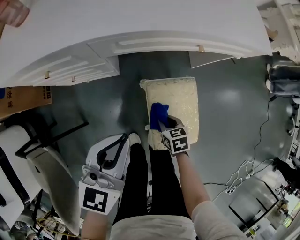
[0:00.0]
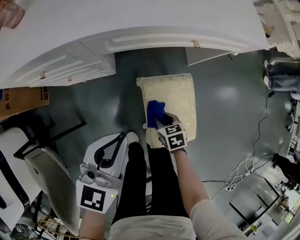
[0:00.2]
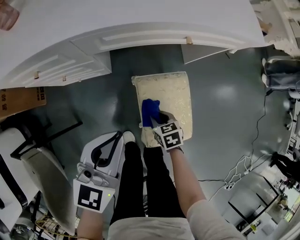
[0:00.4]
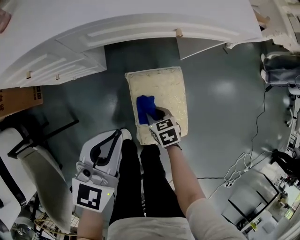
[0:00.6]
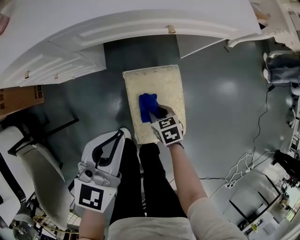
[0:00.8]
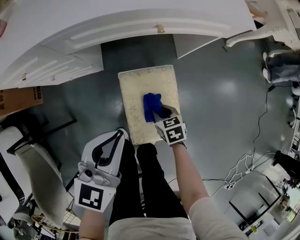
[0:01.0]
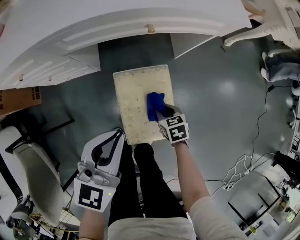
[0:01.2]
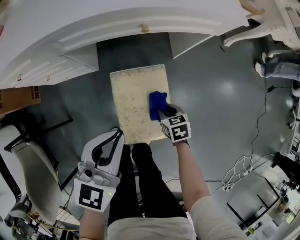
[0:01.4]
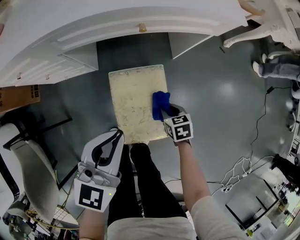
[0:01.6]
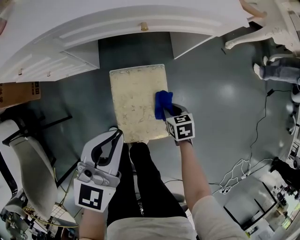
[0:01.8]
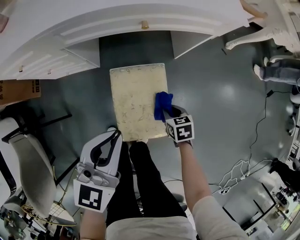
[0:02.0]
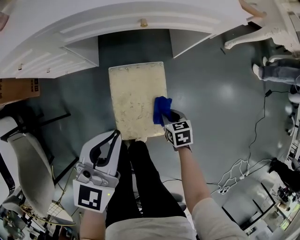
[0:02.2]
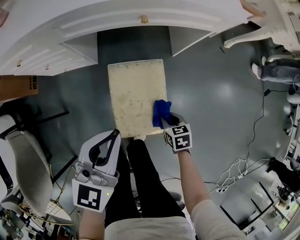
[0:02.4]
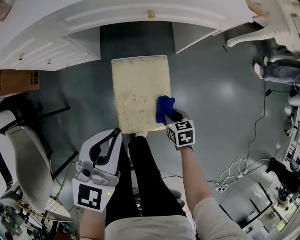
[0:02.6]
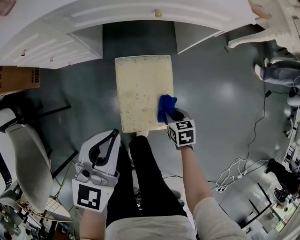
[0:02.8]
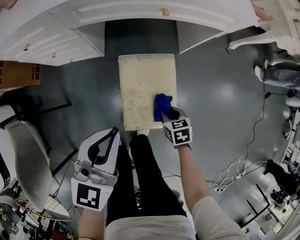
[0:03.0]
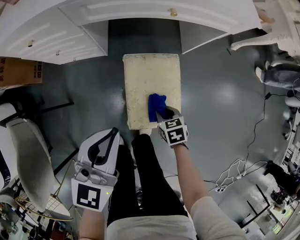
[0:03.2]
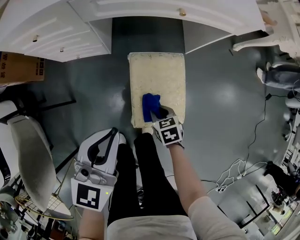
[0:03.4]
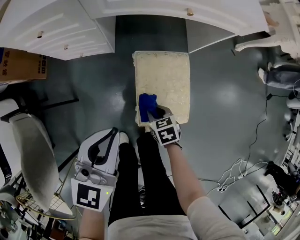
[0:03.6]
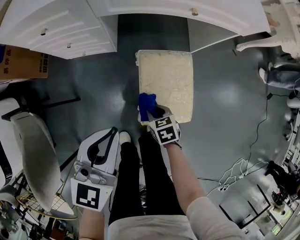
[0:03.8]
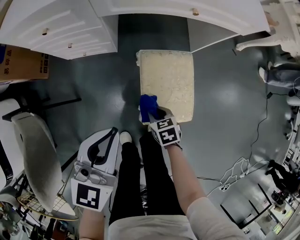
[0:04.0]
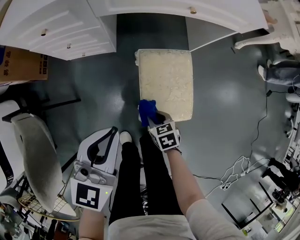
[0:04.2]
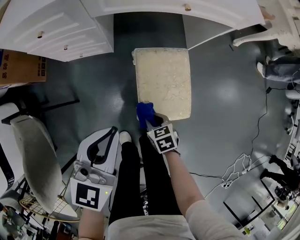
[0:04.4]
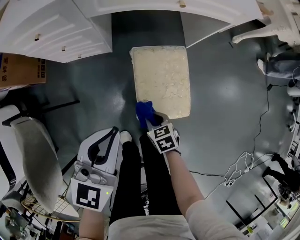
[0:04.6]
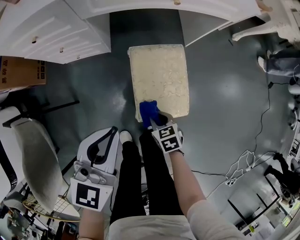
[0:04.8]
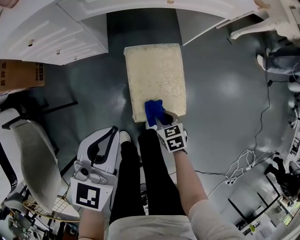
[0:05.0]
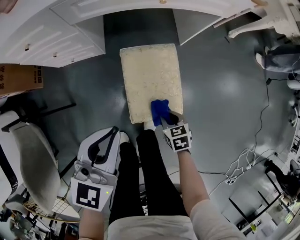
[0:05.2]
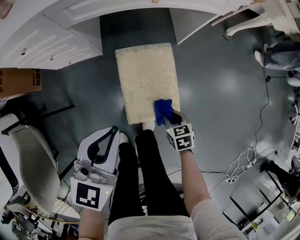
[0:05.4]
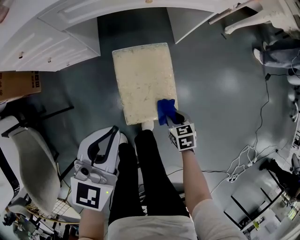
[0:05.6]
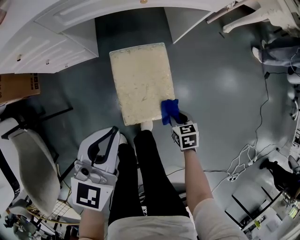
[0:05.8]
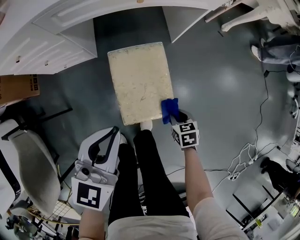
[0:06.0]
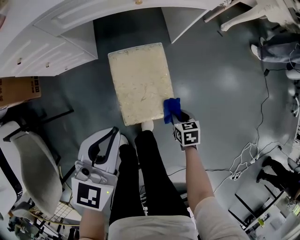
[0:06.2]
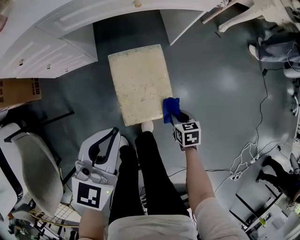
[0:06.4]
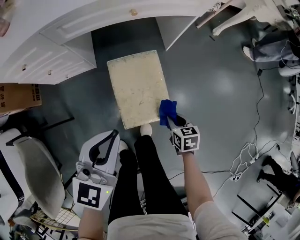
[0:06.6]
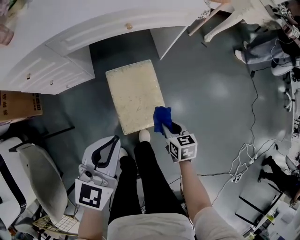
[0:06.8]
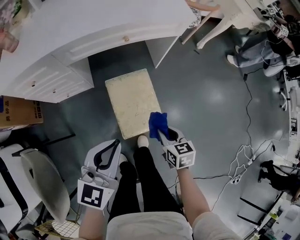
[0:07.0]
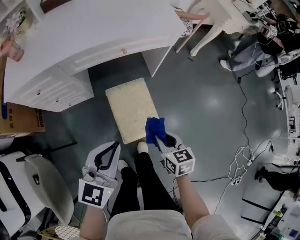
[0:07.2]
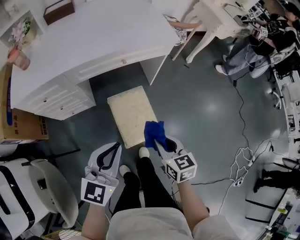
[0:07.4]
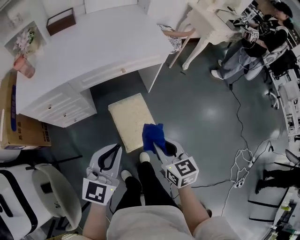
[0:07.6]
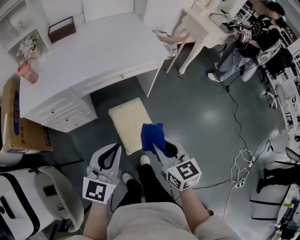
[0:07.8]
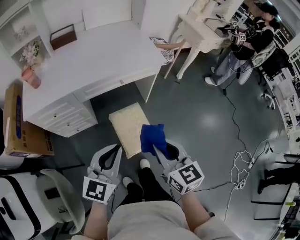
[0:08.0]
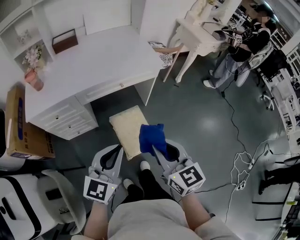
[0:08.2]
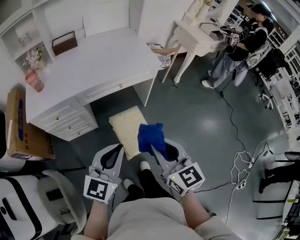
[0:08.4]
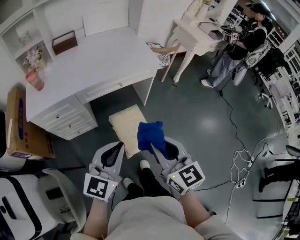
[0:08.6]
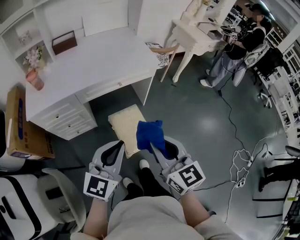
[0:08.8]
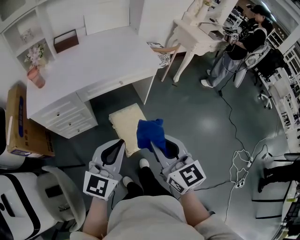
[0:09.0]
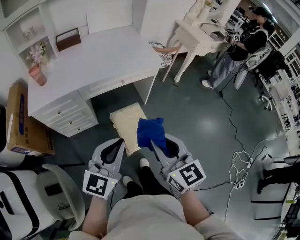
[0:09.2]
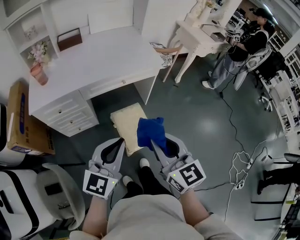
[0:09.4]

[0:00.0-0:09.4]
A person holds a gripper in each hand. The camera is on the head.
0:00.0 to 0:01.6: The grippers both shift to the right by approximately 15 cm.
0:01.6 to 0:03.2: Both grippers move to the left and backward, about 10 cm.
0:03.2 to 0:04.8: The right gripper moves to the left and backward, approximately 10 cm.
0:04.8 to 0:06.2: The right gripper goes some 20 cm to the right; the left gripper moves to the right, approximately 10 cm.
0:06.2 to 0:07.8: The right gripper goes roughly 50 cm upward, and points its fingers about 40 degrees further upward. Meanwhile the left gripper heads upward, covering approximately 20 cm.
0:07.8 to 0:09.4: The right gripper goes some 15 cm upward and backward, while the left gripper heads upward and backward, covering some 10 cm.

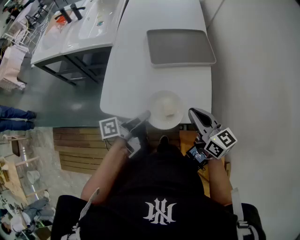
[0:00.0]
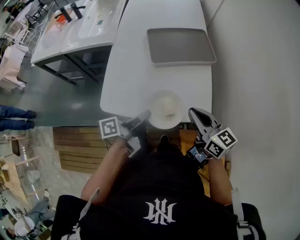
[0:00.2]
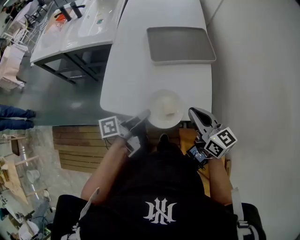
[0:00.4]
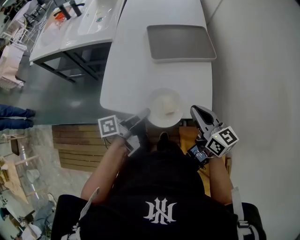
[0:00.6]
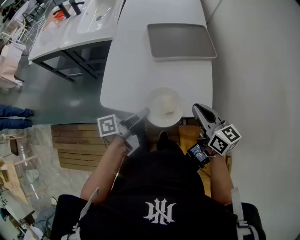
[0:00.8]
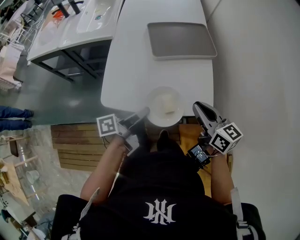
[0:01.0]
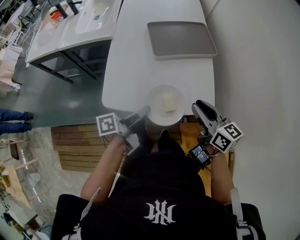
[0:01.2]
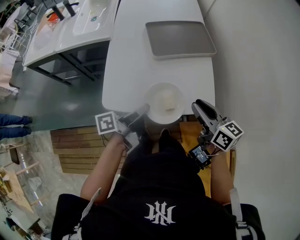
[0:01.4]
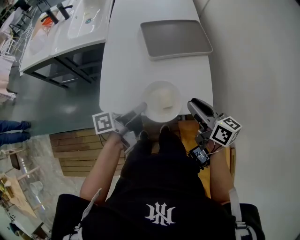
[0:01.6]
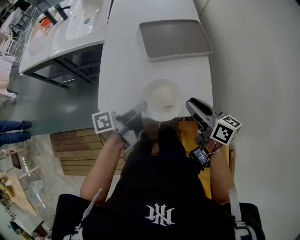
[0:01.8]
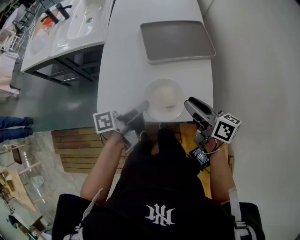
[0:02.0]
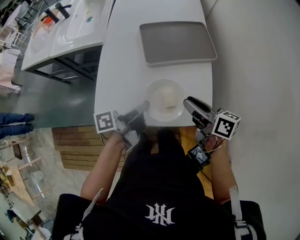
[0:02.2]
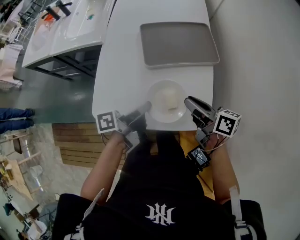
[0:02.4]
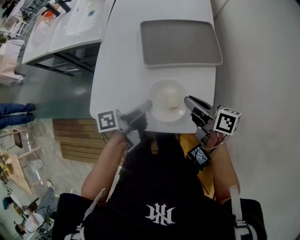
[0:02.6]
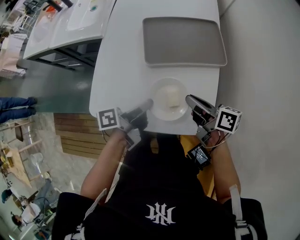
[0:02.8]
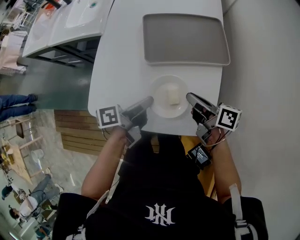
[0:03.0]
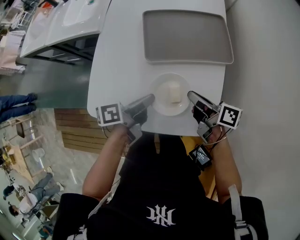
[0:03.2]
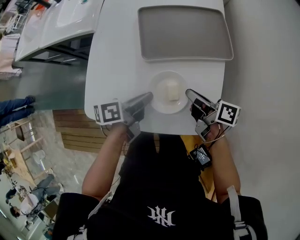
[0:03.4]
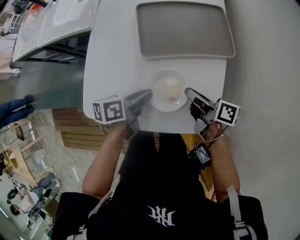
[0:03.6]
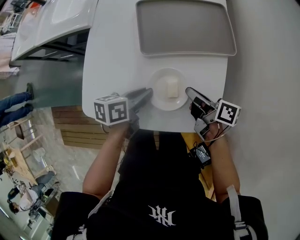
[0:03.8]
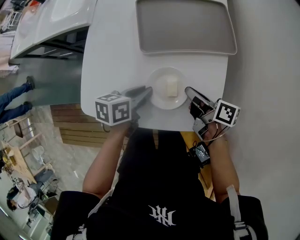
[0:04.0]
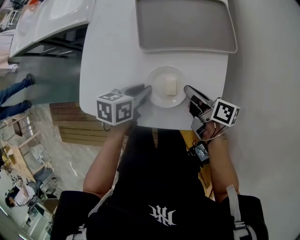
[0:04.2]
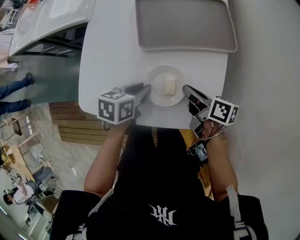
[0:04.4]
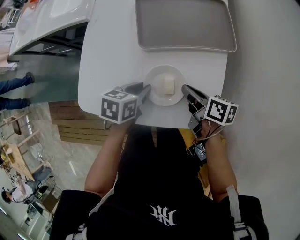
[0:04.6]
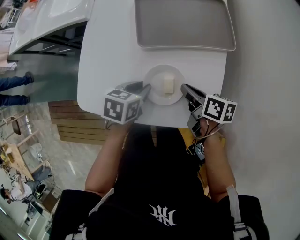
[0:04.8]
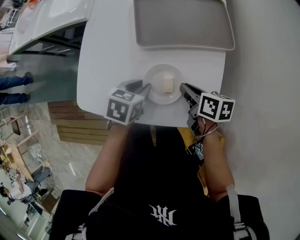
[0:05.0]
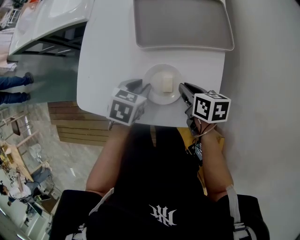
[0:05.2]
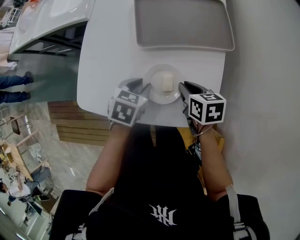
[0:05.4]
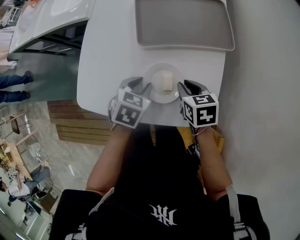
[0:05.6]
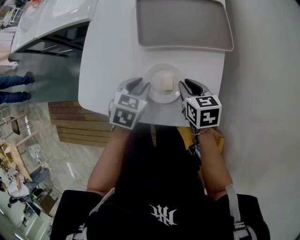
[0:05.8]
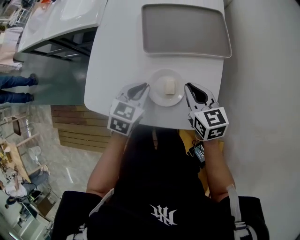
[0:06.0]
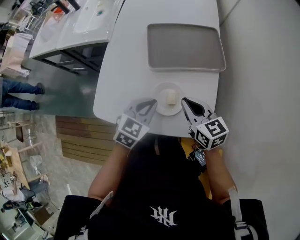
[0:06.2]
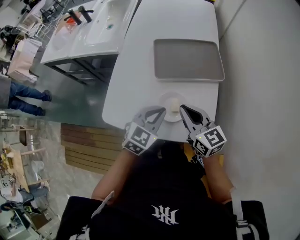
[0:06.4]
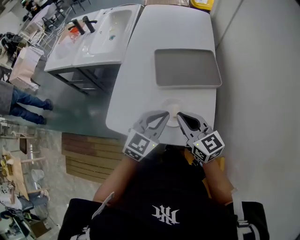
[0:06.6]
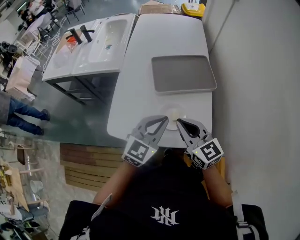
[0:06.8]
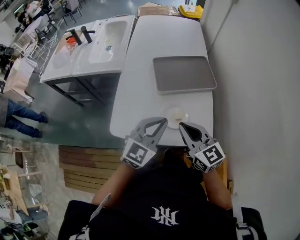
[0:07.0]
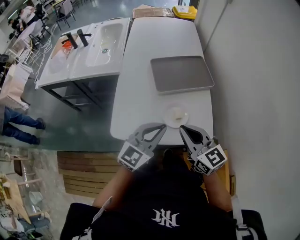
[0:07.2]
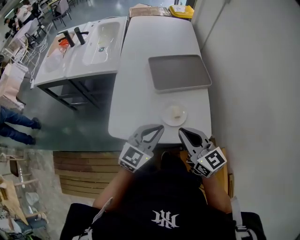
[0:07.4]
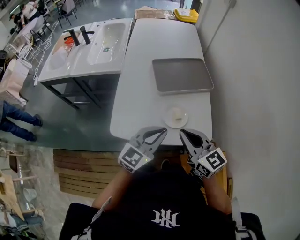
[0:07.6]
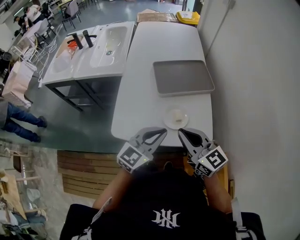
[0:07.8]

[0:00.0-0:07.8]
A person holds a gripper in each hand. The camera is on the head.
0:00.0 to 0:01.6: The right gripper opens.
0:01.6 to 0:03.2: The right gripper shifts roughly 20 cm forward and downward, and swivels roughly 30 degrees; the left gripper goes about 15 cm forward, downward and to the right.
0:03.2 to 0:04.6: The two grippers go about 5 cm downward. The left gripper points its fingers about 30 degrees further downward.
0:04.6 to 0:06.2: The grippers both shift upward by about 10 cm. The left gripper changes its angle by approximately 40 degrees. The right gripper rotates around the line of its fingers by approximately 50 degrees, counterclockwise from behind.
0:06.2 to 0:07.8: The left gripper shifts roughly 20 cm upward and backward, and rotates approximately 30 degrees, while the right gripper is displaced backward, upward and to the left by some 20 cm.

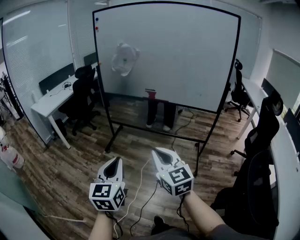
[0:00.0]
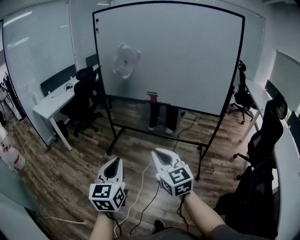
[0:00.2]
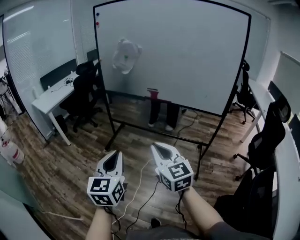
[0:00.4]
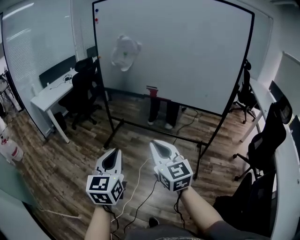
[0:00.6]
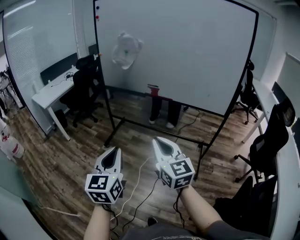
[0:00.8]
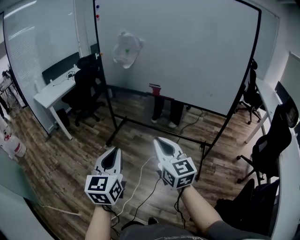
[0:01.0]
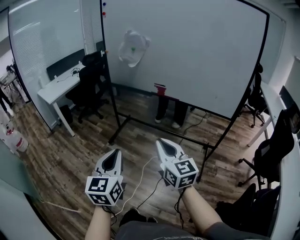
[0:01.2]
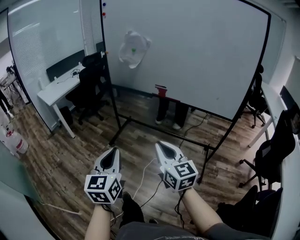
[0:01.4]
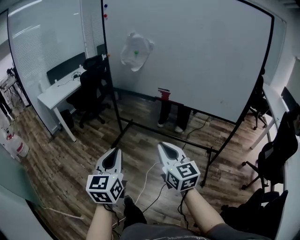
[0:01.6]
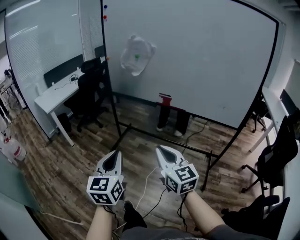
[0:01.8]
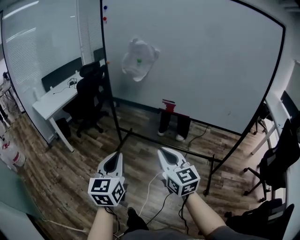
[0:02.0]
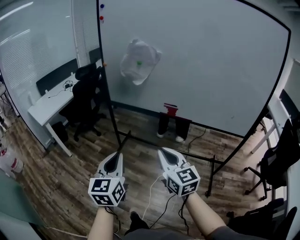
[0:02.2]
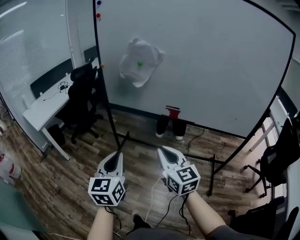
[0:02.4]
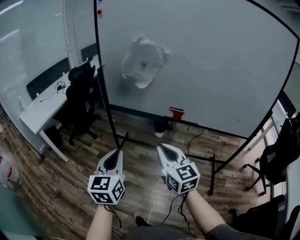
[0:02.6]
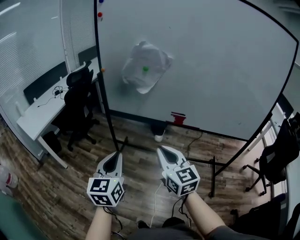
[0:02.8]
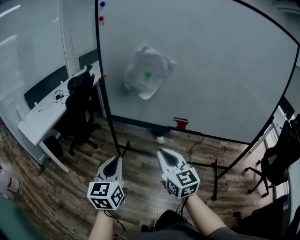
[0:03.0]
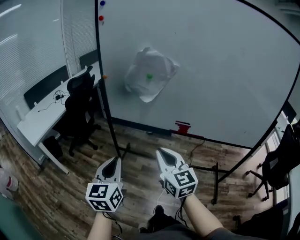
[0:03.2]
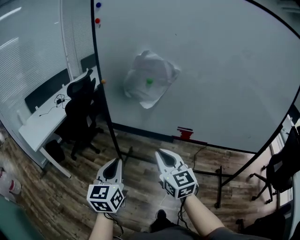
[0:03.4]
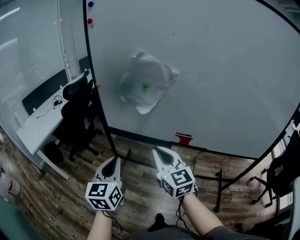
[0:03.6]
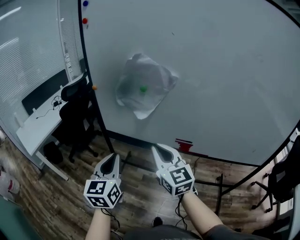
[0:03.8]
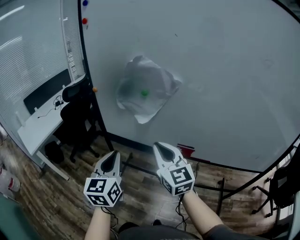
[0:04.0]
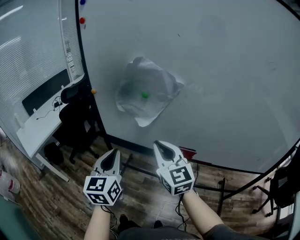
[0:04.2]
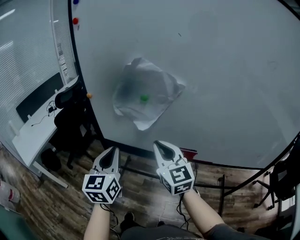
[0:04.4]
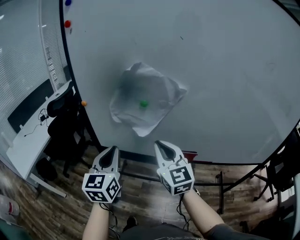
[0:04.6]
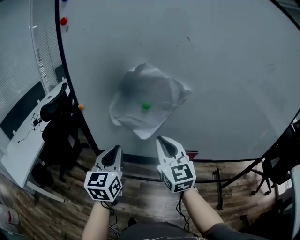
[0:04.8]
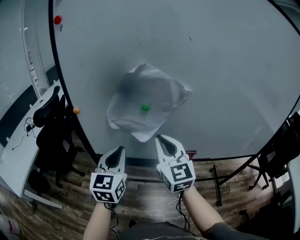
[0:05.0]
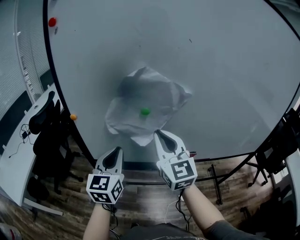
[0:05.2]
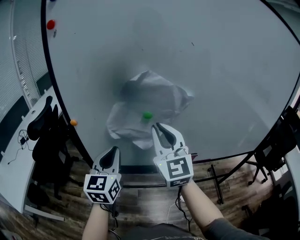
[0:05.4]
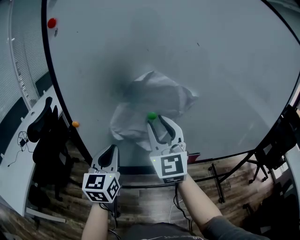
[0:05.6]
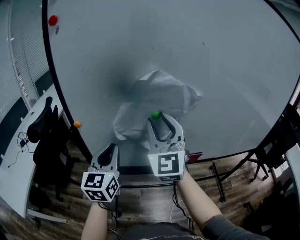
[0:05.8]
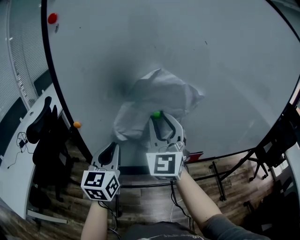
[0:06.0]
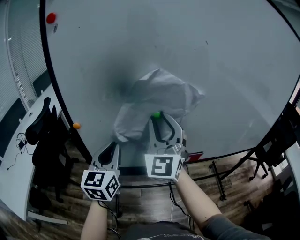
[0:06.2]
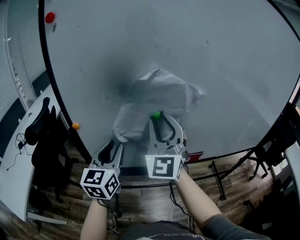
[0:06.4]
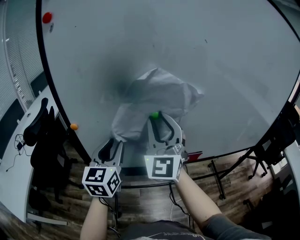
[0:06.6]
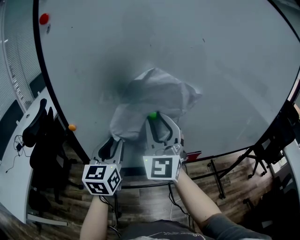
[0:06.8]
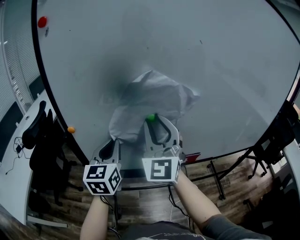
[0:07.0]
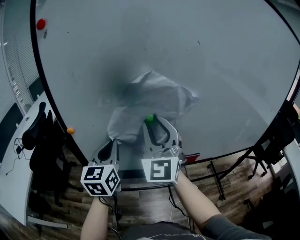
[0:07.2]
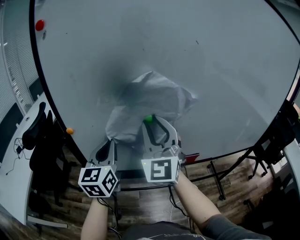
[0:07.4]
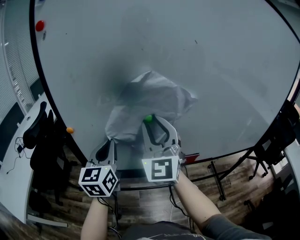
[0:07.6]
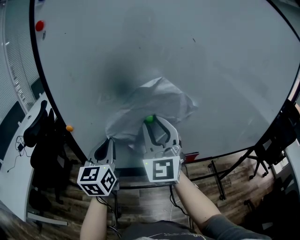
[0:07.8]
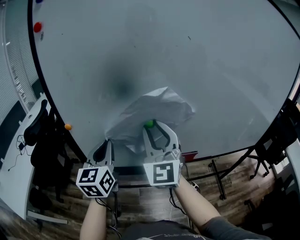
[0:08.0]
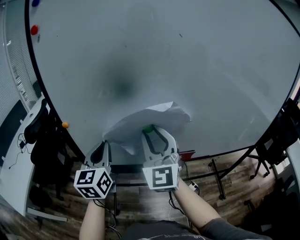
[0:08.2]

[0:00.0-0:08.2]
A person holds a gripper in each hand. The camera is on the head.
0:00.0 to 0:01.6: Both grippers travel together forward, about 15 cm.
0:01.6 to 0:03.2: The left gripper moves forward, some 35 cm, while the right gripper goes some 35 cm forward and to the left.
0:03.2 to 0:05.0: Both grippers travel together forward, approximately 30 cm. The right gripper rotates some 20 degrees.
0:05.0 to 0:06.6: The right gripper goes about 10 cm upward, forward and to the left, changes its angle by roughly 30 degrees, and opens its fingers. The left gripper goes approximately 10 cm forward and to the left, and opens up.
0:06.6 to 0:08.2: The right gripper changes place by roughly 5 cm. The left gripper closes.
